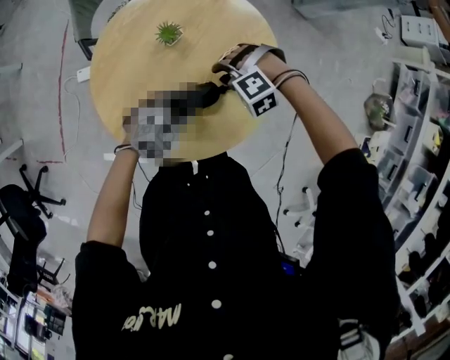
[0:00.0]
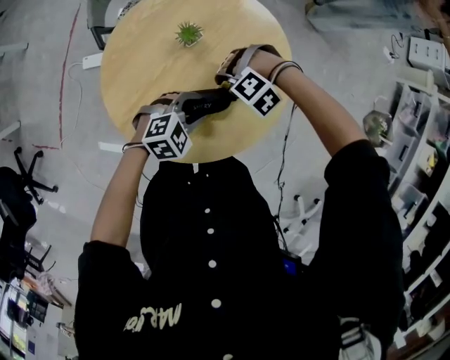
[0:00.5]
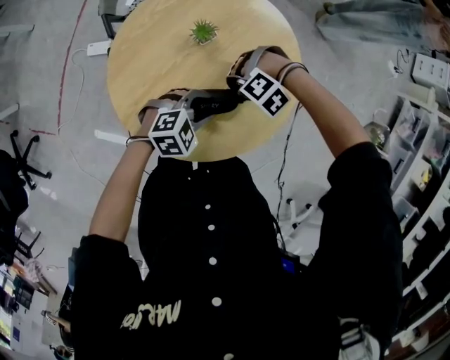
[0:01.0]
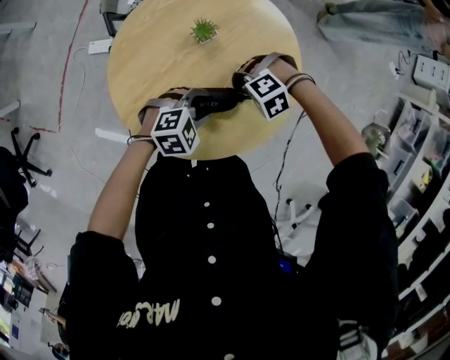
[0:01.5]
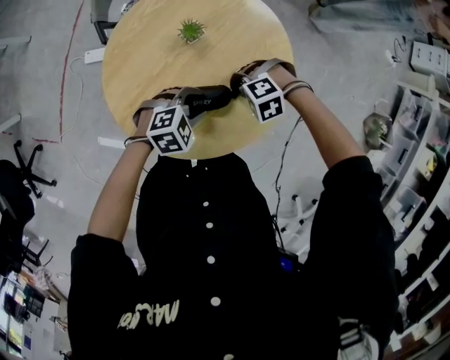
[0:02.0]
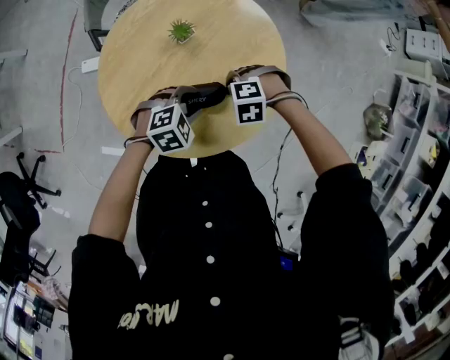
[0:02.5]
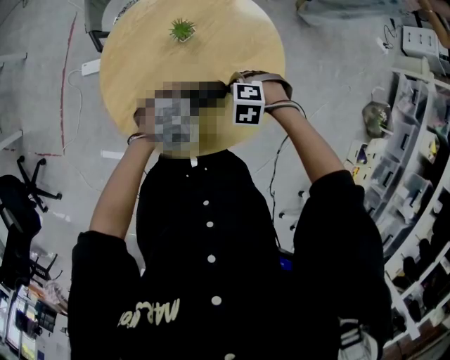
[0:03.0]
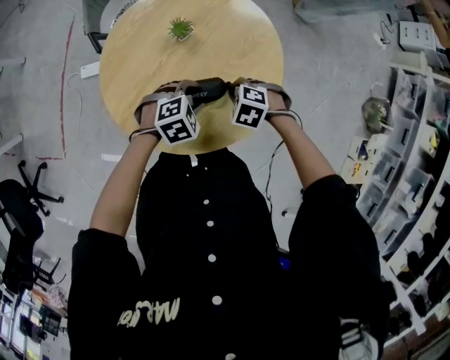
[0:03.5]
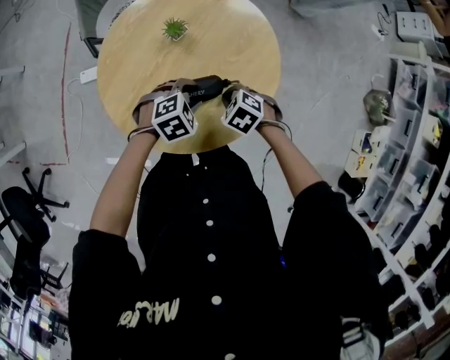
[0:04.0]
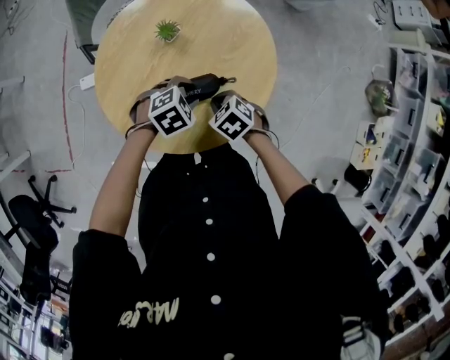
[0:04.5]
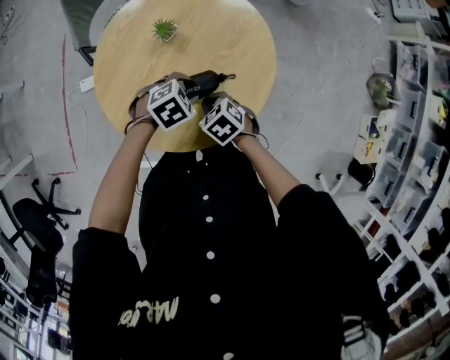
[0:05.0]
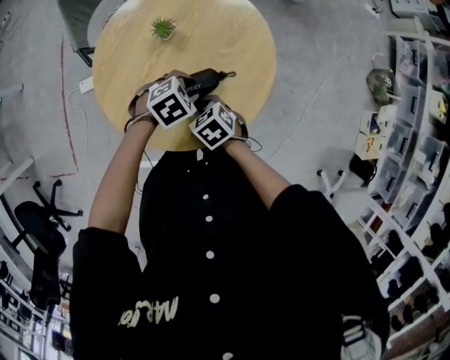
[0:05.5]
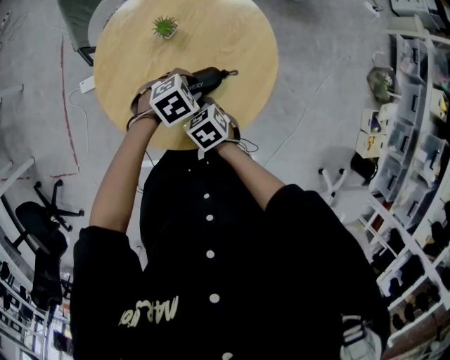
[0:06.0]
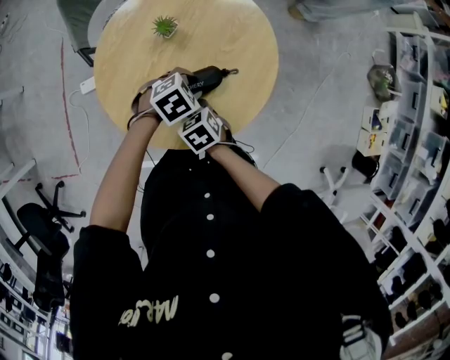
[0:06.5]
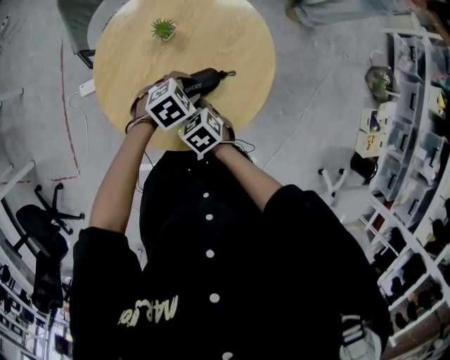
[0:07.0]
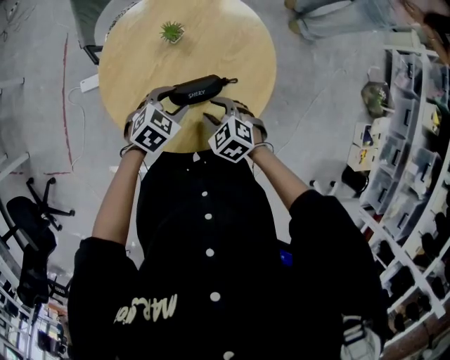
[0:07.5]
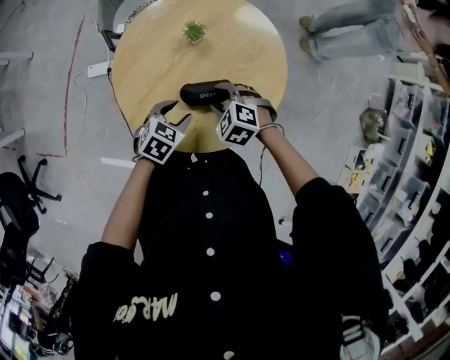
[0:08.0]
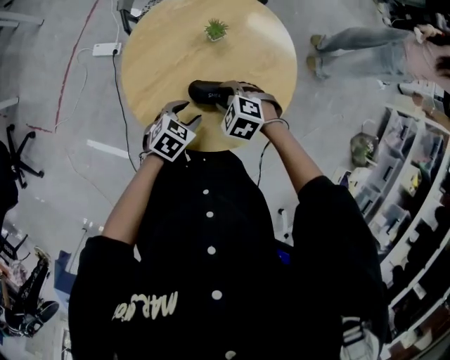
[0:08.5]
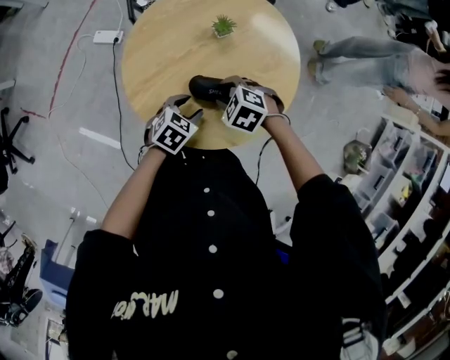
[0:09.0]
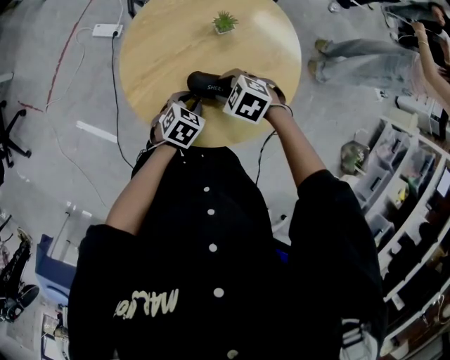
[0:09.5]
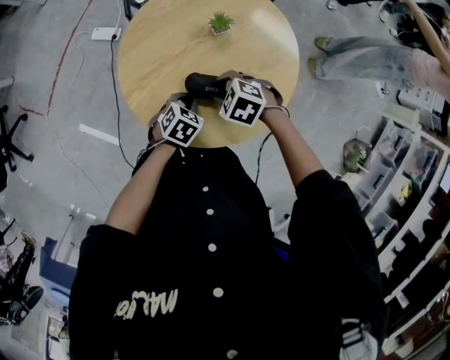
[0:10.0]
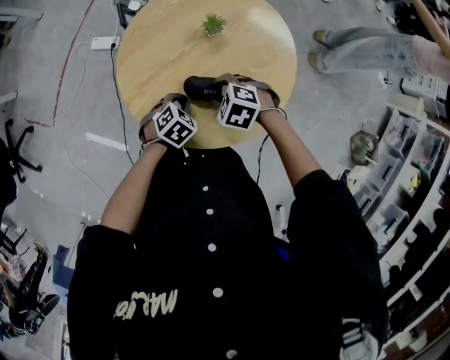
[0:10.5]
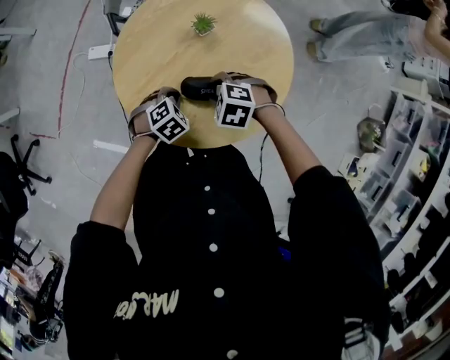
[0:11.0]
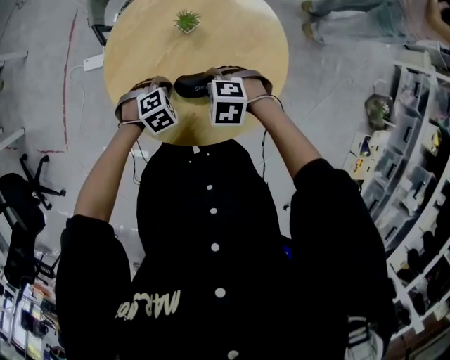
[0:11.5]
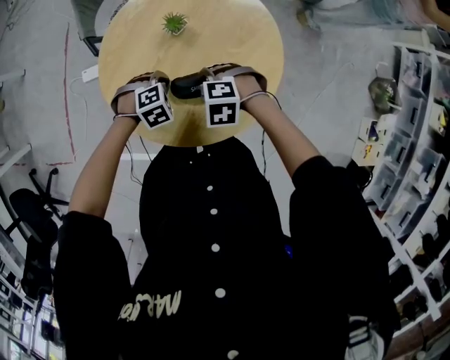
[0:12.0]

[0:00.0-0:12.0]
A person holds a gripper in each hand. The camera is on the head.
0:00.0 to 0:02.0: The right gripper closes.
0:02.0 to 0:04.0: The right gripper shifts by some 5 cm, and rolls clockwise, seen from behind, by about 60 degrees.
0:04.0 to 0:06.0: The right gripper moves some 10 cm, and rotates approximately 30 degrees.
0:06.0 to 0:08.0: The left gripper moves approximately 10 cm, and rotates approximately 40 degrees, while the right gripper shifts by approximately 10 cm, rotates around the line of its fingers by roughly 50 degrees, counterclockwise from behind, and opens up.
0:08.0 to 0:10.0: The right gripper swivels roughly 20 degrees, while the left gripper travels downward by approximately 5 cm, and closes its fingers.
0:10.0 to 0:12.0: The left gripper shifts by roughly 5 cm, and rolls clockwise, seen from behind, by approximately 60 degrees.

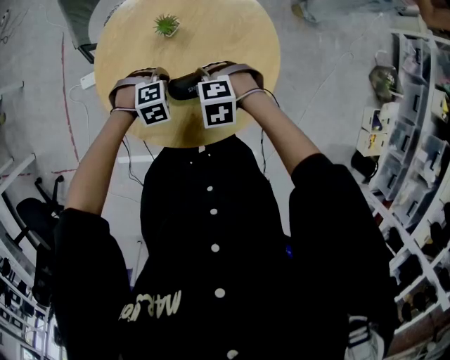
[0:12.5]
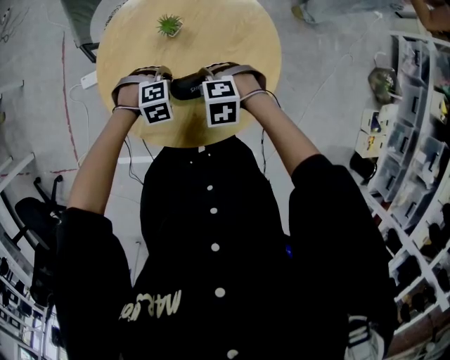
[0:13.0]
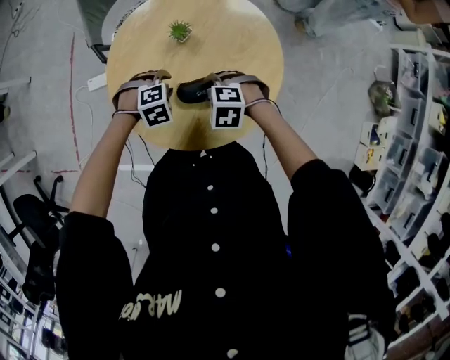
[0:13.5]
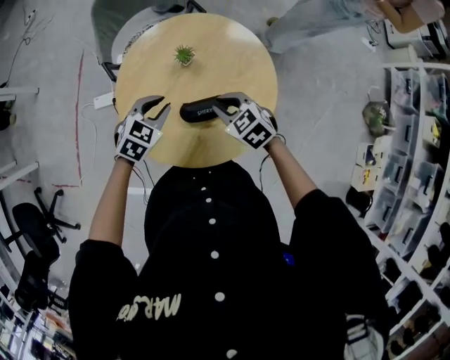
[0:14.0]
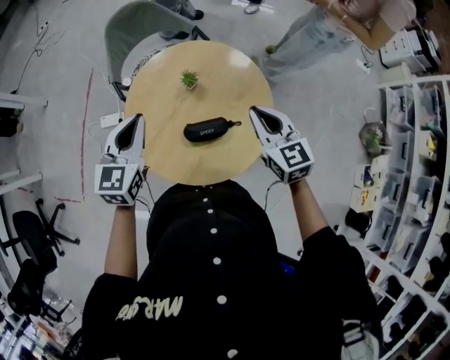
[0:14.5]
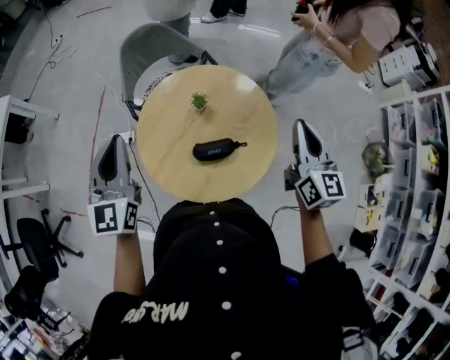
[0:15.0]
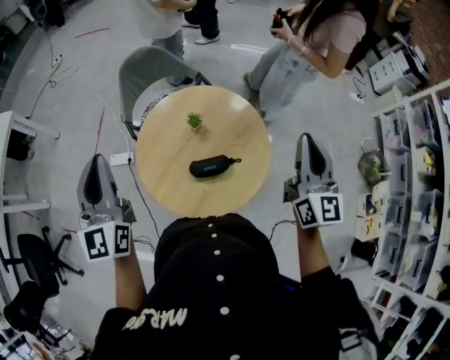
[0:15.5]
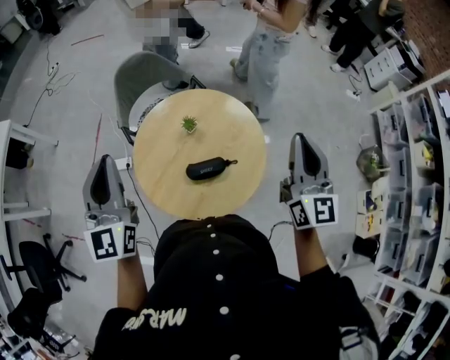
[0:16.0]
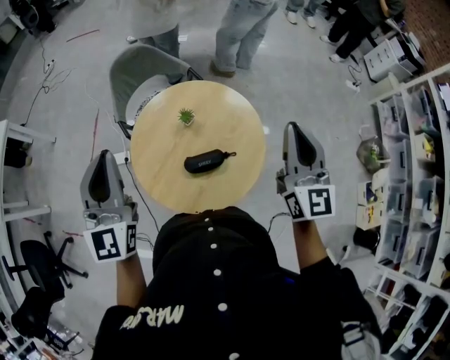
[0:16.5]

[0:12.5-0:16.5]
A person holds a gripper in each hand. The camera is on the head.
0:12.5 to 0:14.5: The grippers both shift upward by about 30 cm. The right gripper tilts its fingers approximately 50 degrees upward, and closes up. The left gripper angles its fingers upward, by roughly 60 degrees, and opens, then closes once more.
0:14.5 to 0:16.5: The right gripper travels upward and to the right by some 20 cm, and rotates some 40 degrees. The left gripper heads upward, covering approximately 20 cm, and rotates roughly 30 degrees.

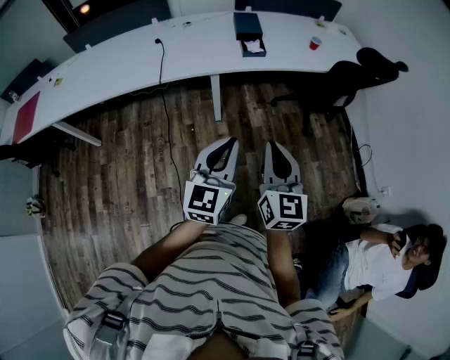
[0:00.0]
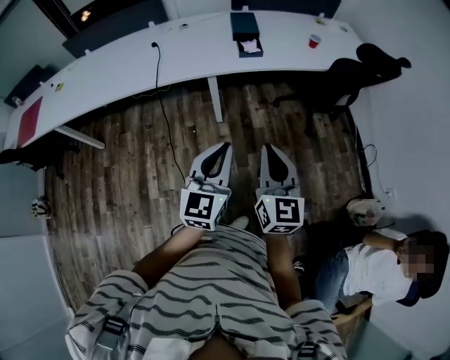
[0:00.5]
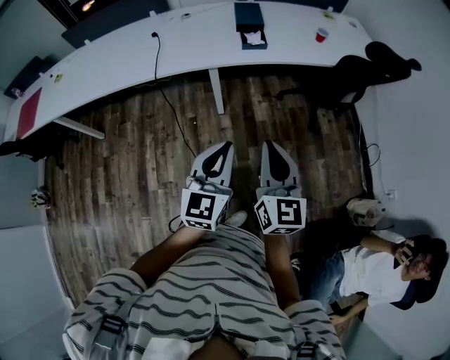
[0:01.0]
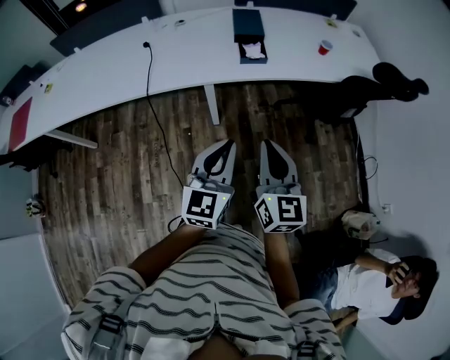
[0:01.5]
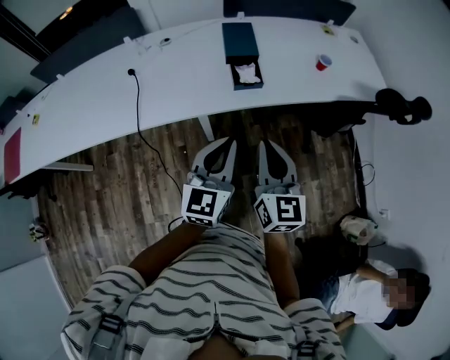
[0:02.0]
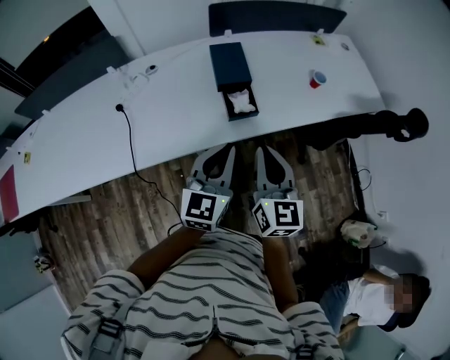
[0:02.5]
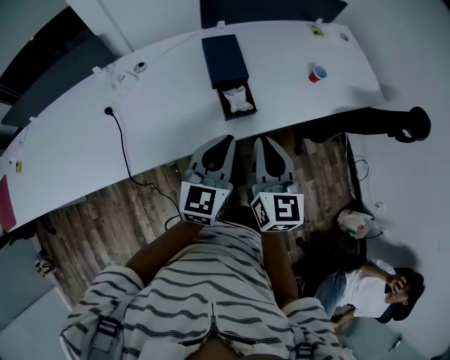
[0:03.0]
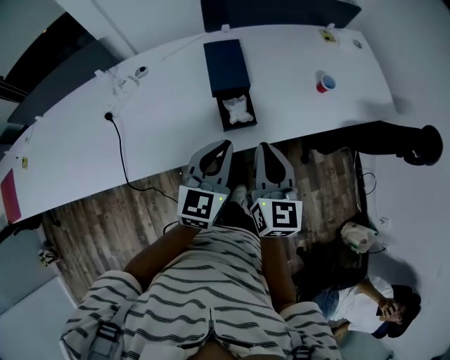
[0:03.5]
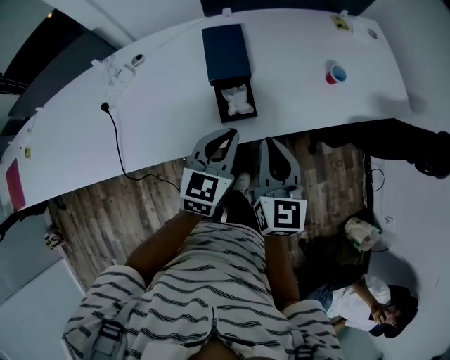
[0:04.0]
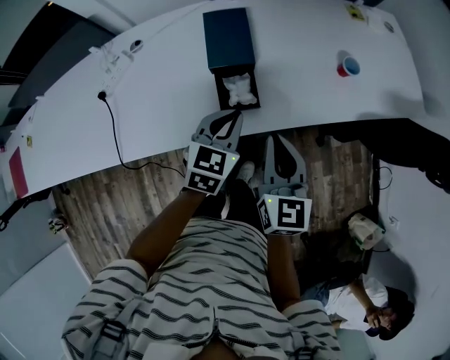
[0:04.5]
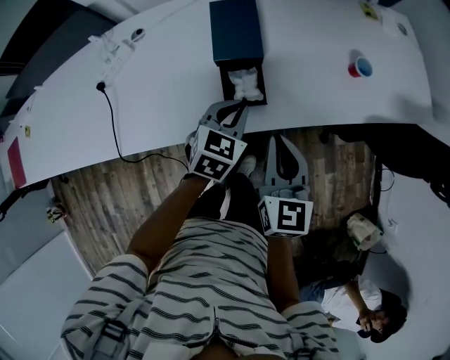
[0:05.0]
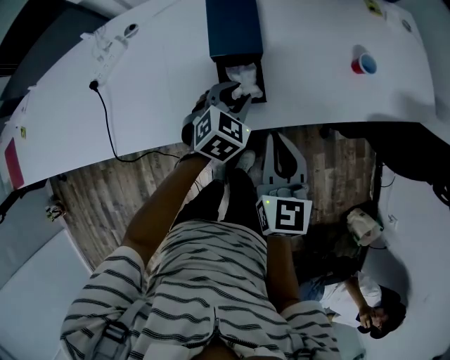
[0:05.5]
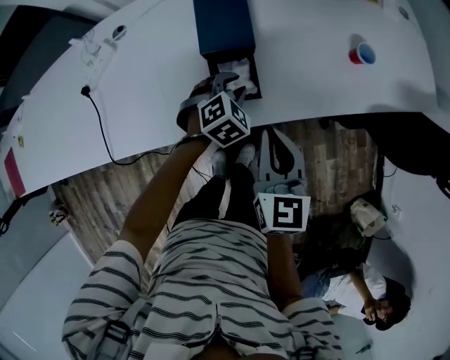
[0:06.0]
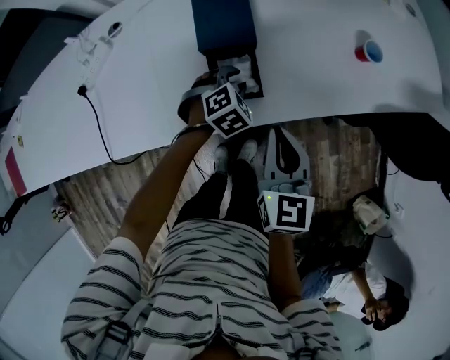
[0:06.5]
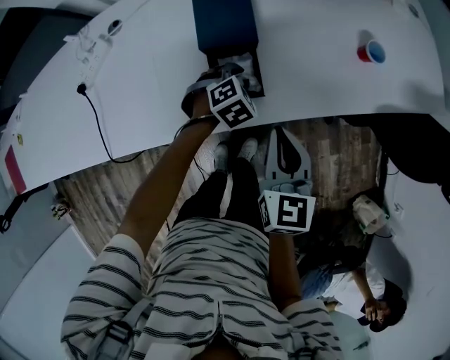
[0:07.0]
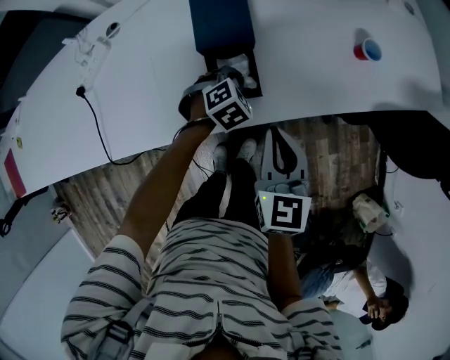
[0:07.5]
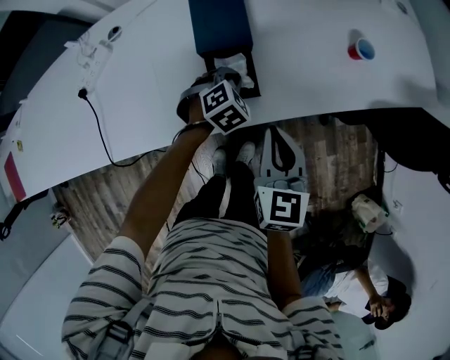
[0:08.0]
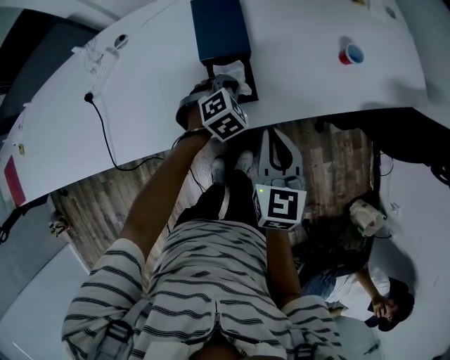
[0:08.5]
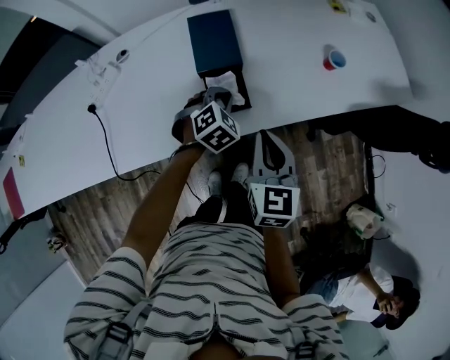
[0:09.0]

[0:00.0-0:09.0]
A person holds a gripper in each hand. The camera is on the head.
0:00.0 to 0:02.0: The grippers both shift forward by roughly 35 cm.
0:02.0 to 0:04.5: The right gripper shifts about 25 cm forward. Meanwhile the left gripper goes some 35 cm forward and downward, and rotates about 30 degrees.
0:04.5 to 0:07.0: The left gripper goes roughly 20 cm downward and forward, points its fingers roughly 30 degrees further downward, and opens its fingers, while the right gripper heads downward, covering roughly 10 cm.
0:07.0 to 0:09.0: The right gripper moves upward, approximately 5 cm, while the left gripper moves upward, roughly 10 cm, and closes its fingers.

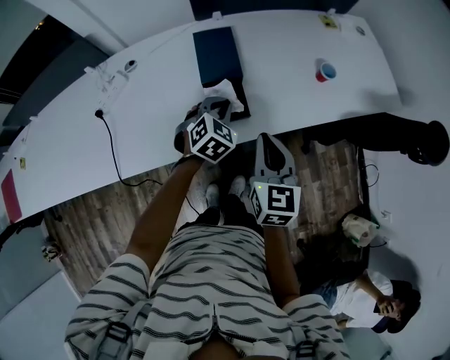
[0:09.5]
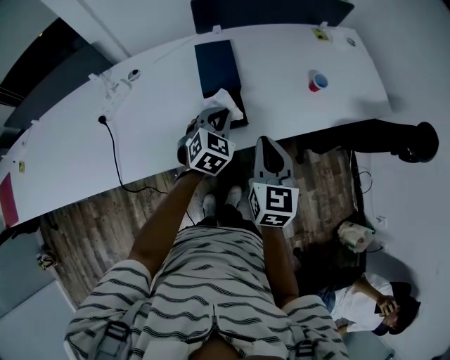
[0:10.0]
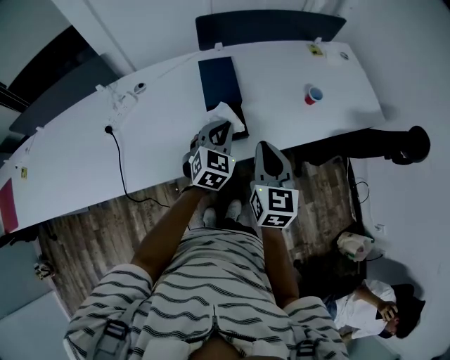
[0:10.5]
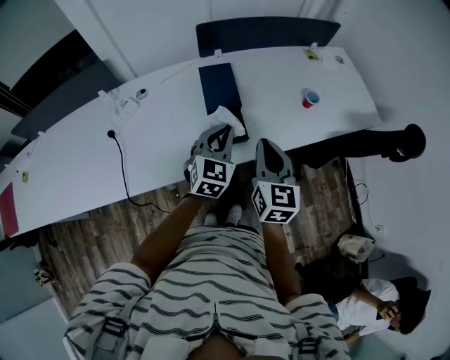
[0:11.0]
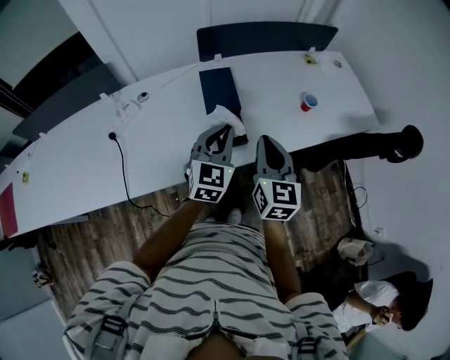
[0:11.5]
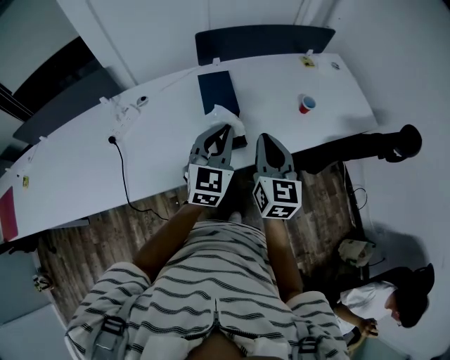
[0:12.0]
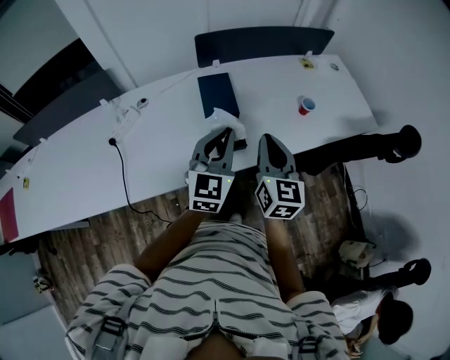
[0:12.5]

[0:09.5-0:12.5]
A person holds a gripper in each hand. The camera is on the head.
0:09.5 to 0:11.0: The right gripper shifts approximately 5 cm upward; the left gripper shifts about 15 cm upward and backward, and turns by about 30 degrees.
0:11.0 to 0:12.5: The left gripper goes approximately 10 cm upward.
